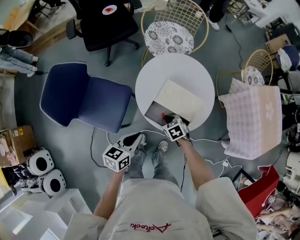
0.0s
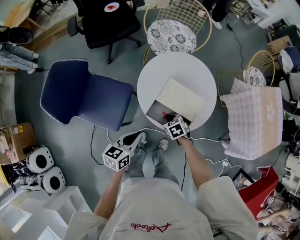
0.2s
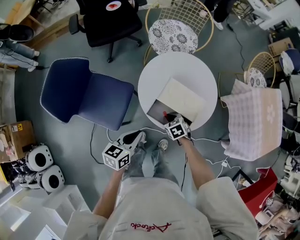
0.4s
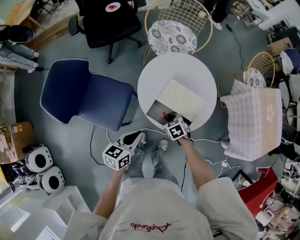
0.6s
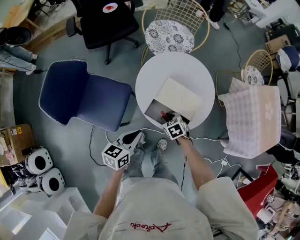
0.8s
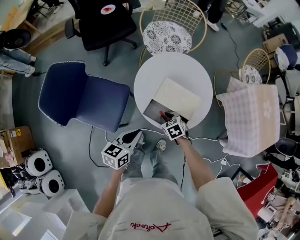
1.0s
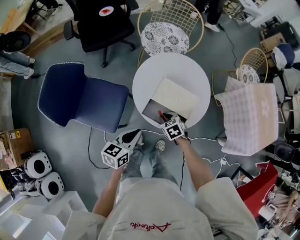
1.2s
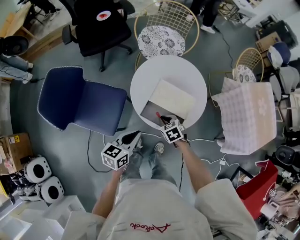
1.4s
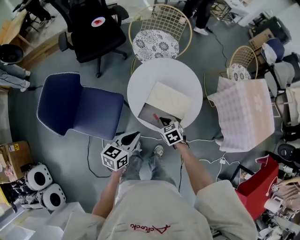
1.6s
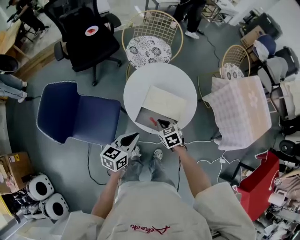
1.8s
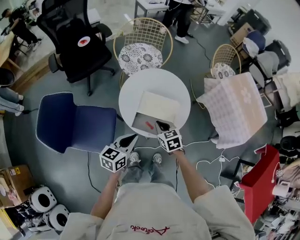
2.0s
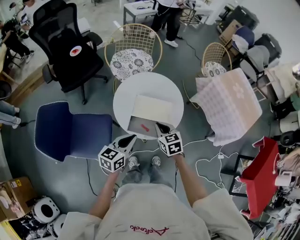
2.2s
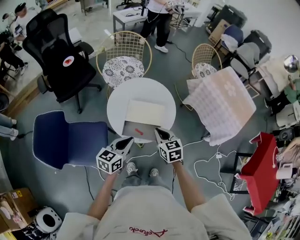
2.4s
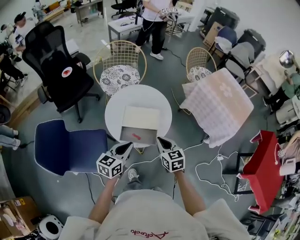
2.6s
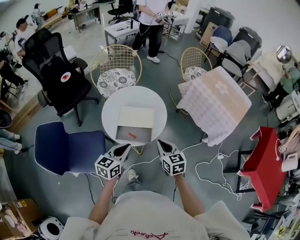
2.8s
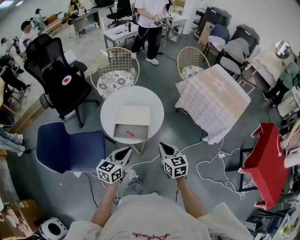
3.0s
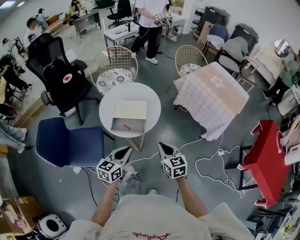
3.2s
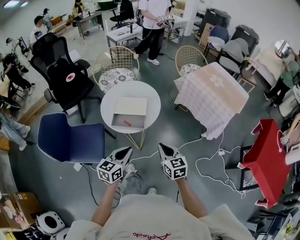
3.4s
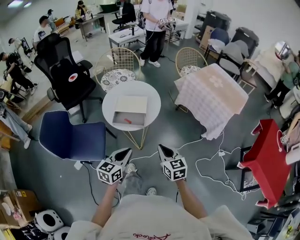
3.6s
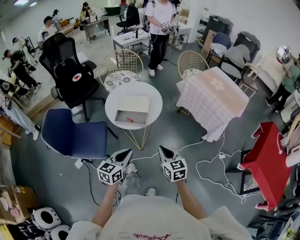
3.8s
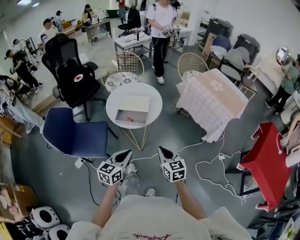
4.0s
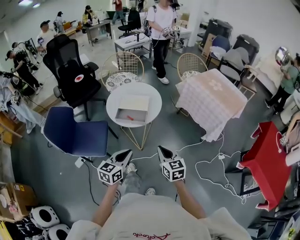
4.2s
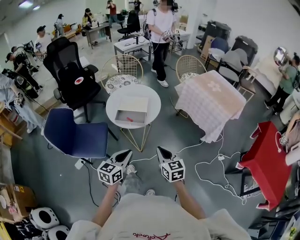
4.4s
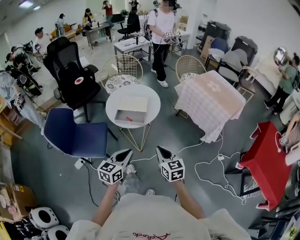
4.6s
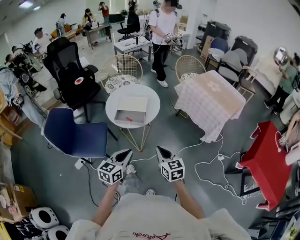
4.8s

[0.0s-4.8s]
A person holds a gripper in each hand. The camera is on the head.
0.0s to 1.6s: The right gripper is displaced upward by roughly 5 cm.
1.6s to 3.2s: The right gripper moves to the right, upward and backward, about 30 cm, and angles its fingers upward, by about 30 degrees, while the left gripper shifts approximately 15 cm to the right, backward and upward, and changes its angle by approximately 20 degrees.
3.2s to 4.8s: Both grippers move backward, approximately 15 cm.

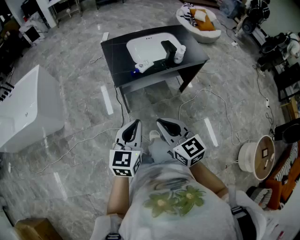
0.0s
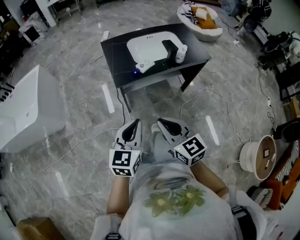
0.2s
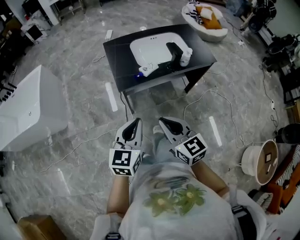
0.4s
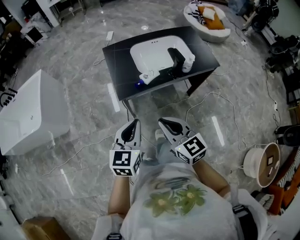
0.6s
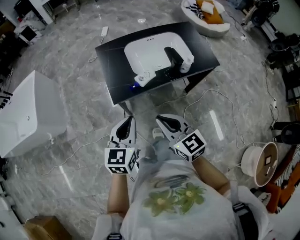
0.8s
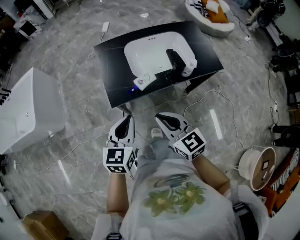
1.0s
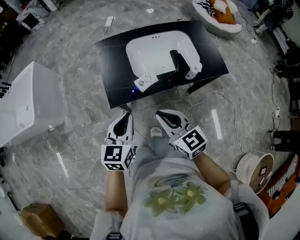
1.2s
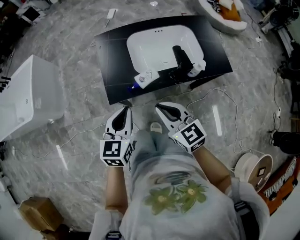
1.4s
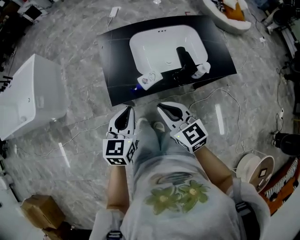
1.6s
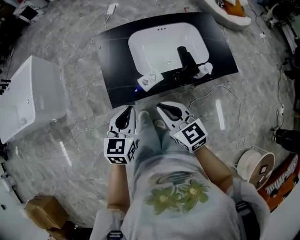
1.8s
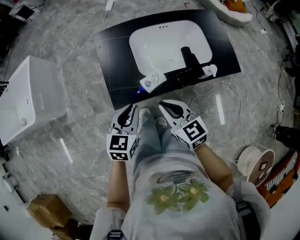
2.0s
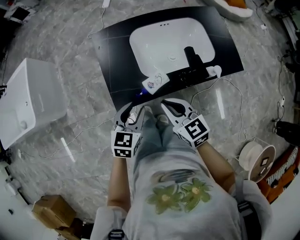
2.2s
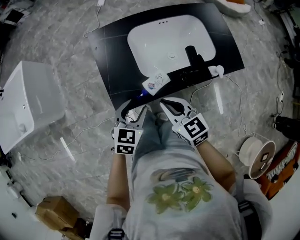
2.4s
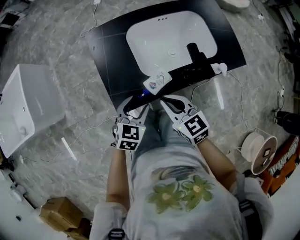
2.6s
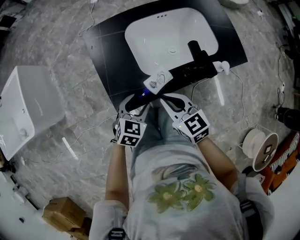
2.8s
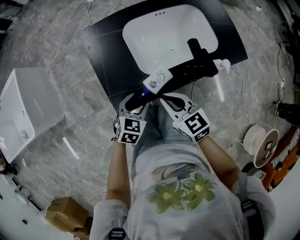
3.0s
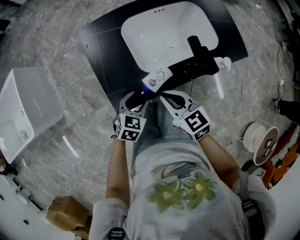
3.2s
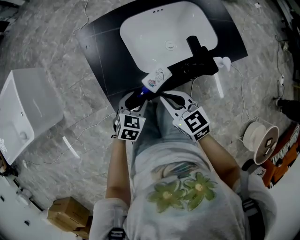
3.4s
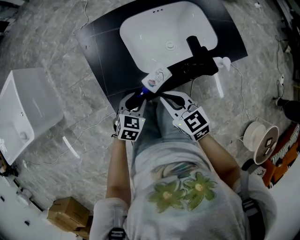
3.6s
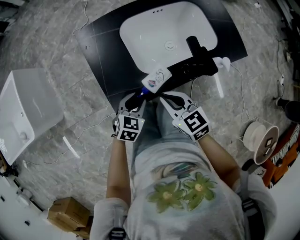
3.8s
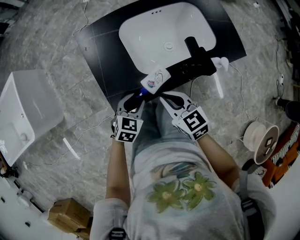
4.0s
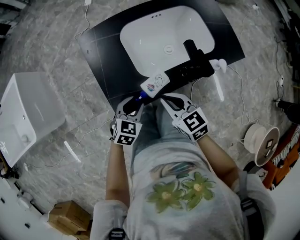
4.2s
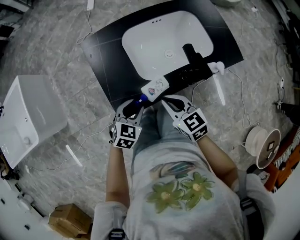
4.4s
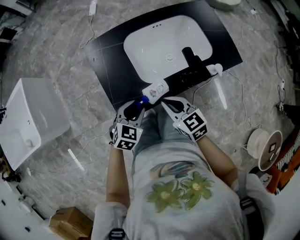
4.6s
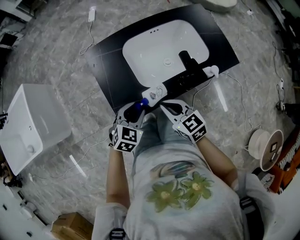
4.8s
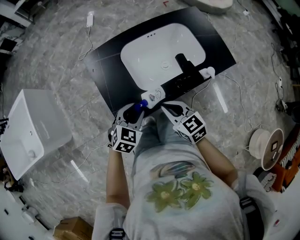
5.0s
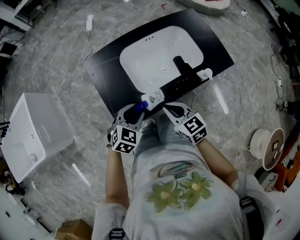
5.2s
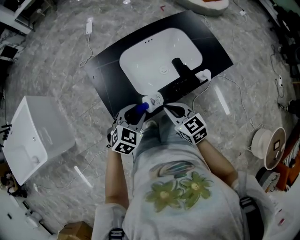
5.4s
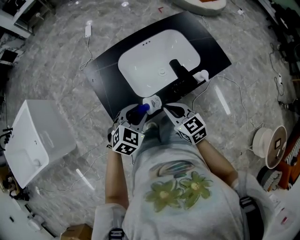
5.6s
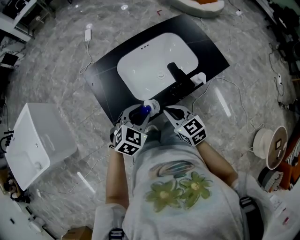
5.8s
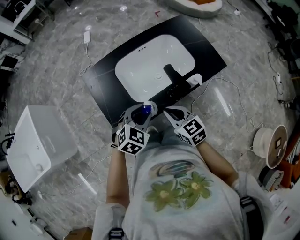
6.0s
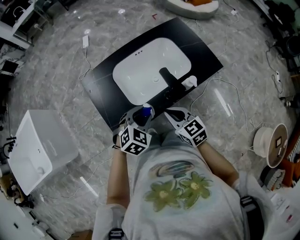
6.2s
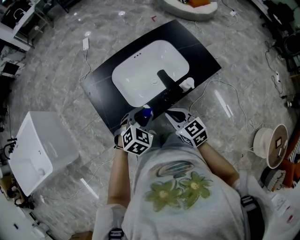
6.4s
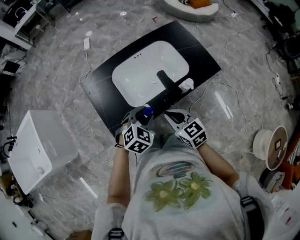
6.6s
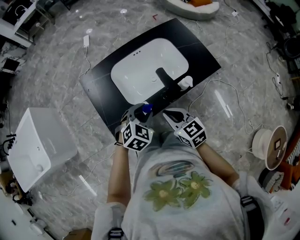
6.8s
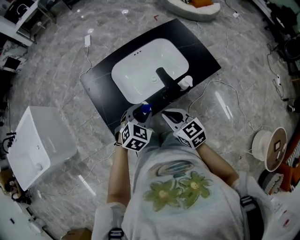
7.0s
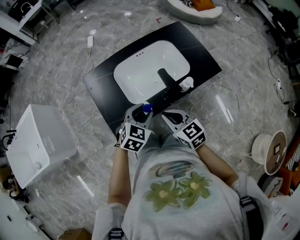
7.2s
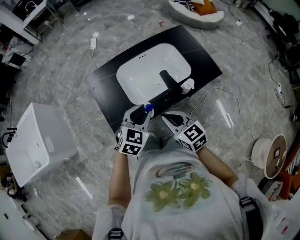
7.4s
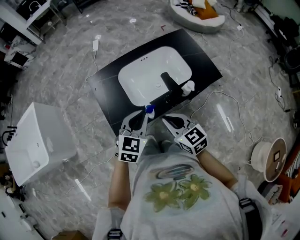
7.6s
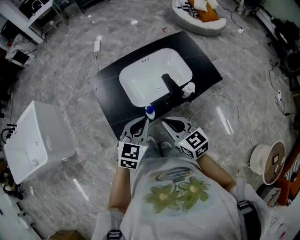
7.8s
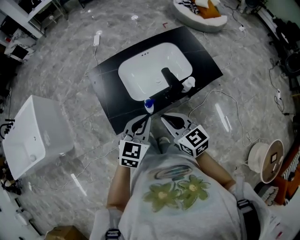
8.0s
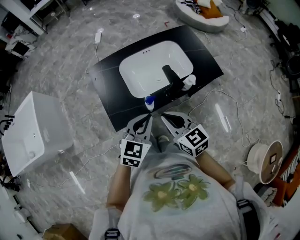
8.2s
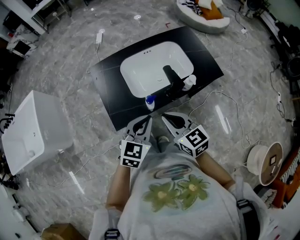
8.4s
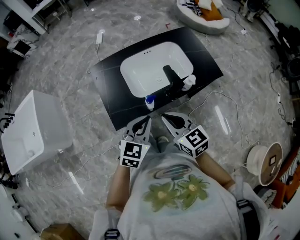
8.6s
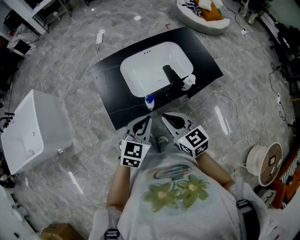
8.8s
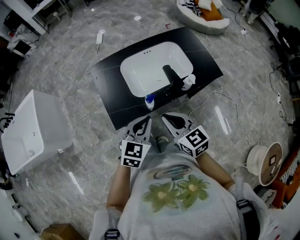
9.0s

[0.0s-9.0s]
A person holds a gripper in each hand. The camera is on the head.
0.0s to 1.6s: The two grippers go about 35 cm forward.
1.6s to 3.0s: The left gripper travels downward and forward by roughly 20 cm, turns by approximately 40 degrees, and opens its fingers. Meanwhile the right gripper travels forward and downward by some 15 cm.
3.0s to 4.4s: There are only small adjustments of the grippers.
4.4s to 6.0s: The left gripper moves upward and to the right, about 15 cm. The right gripper moves to the right, some 5 cm.
6.0s to 7.6s: Both grippers move upward, some 10 cm. The left gripper turns by some 20 degrees, and closes its fingers.
7.6s to 9.0s: The left gripper is displaced backward by roughly 5 cm. The right gripper moves some 5 cm.

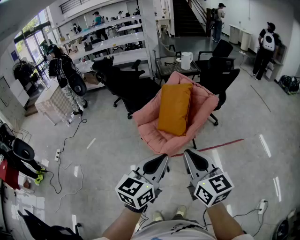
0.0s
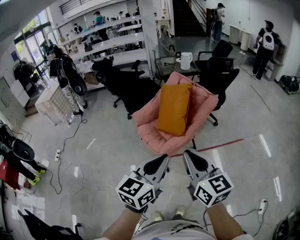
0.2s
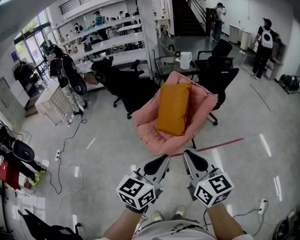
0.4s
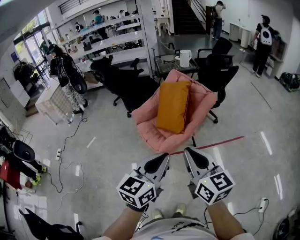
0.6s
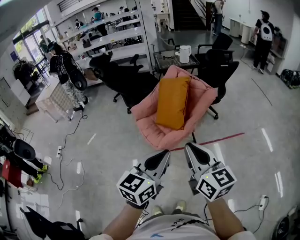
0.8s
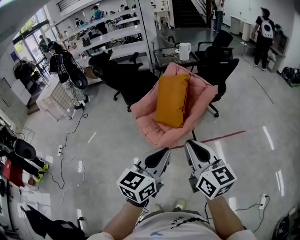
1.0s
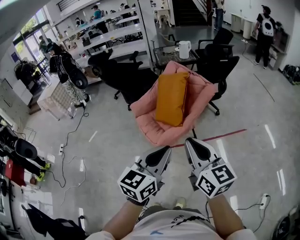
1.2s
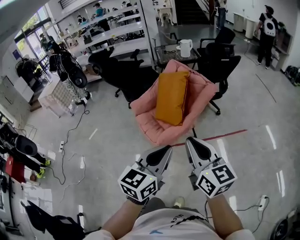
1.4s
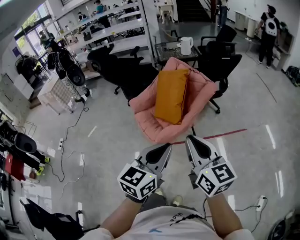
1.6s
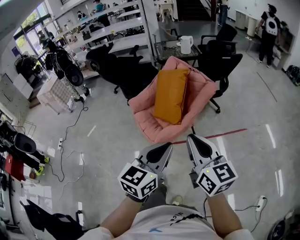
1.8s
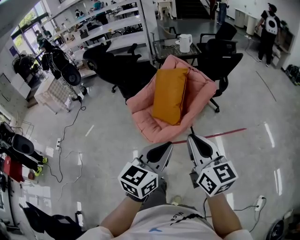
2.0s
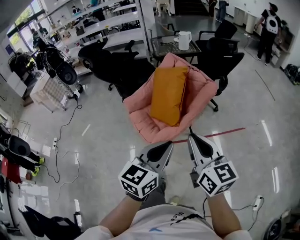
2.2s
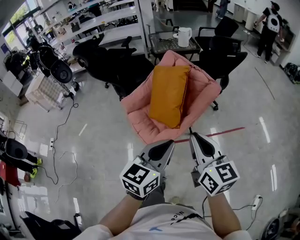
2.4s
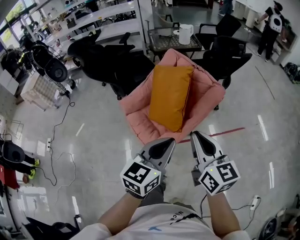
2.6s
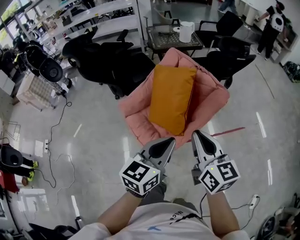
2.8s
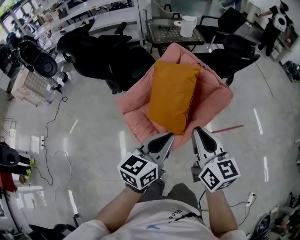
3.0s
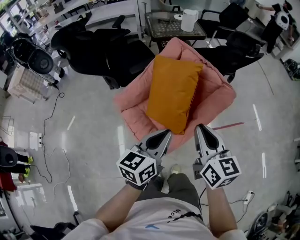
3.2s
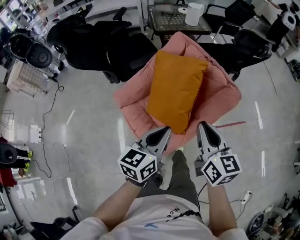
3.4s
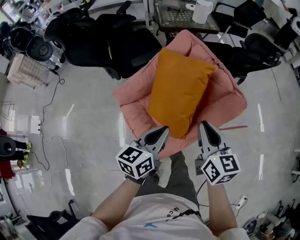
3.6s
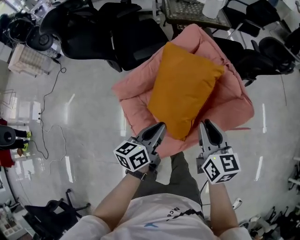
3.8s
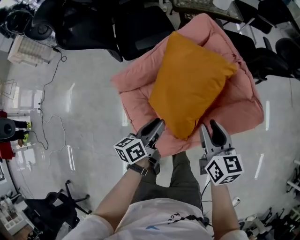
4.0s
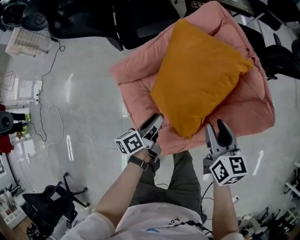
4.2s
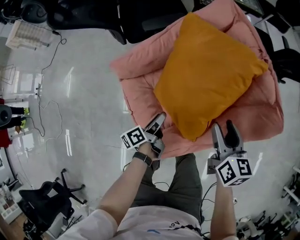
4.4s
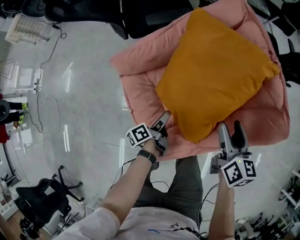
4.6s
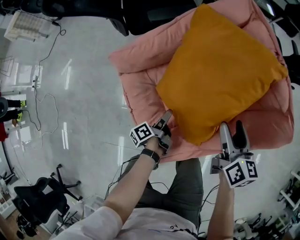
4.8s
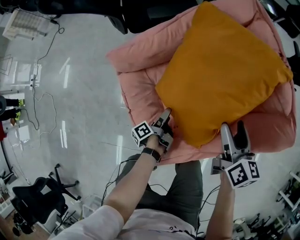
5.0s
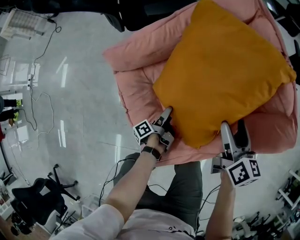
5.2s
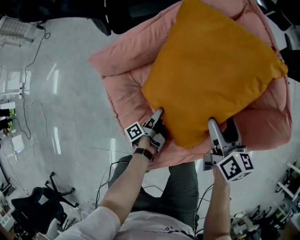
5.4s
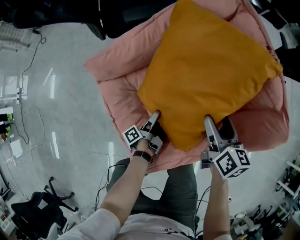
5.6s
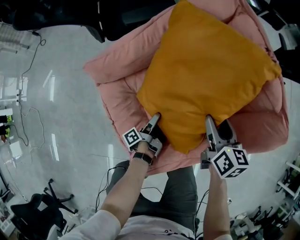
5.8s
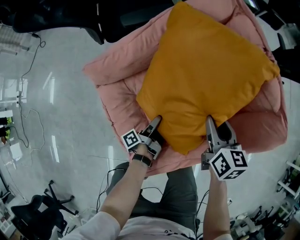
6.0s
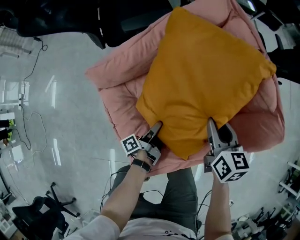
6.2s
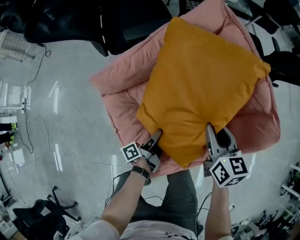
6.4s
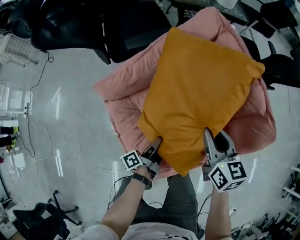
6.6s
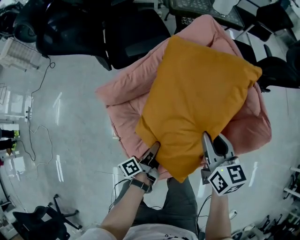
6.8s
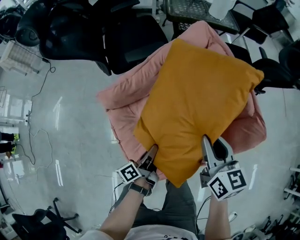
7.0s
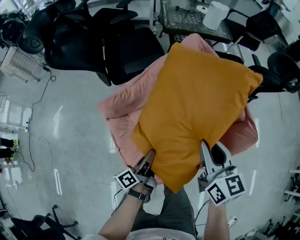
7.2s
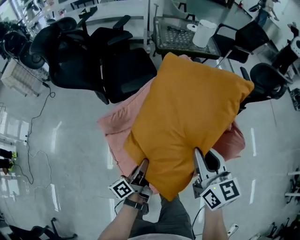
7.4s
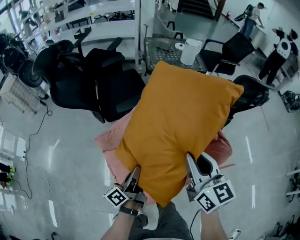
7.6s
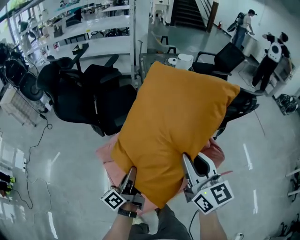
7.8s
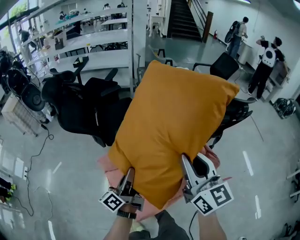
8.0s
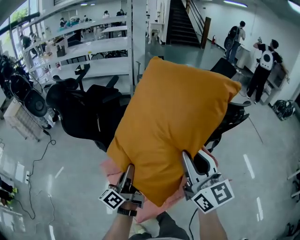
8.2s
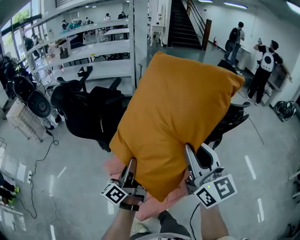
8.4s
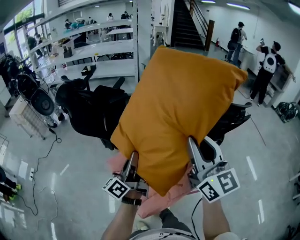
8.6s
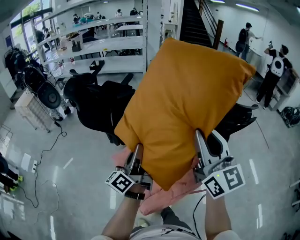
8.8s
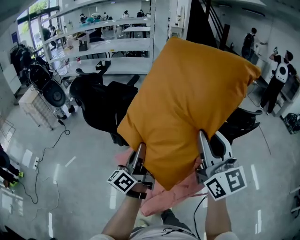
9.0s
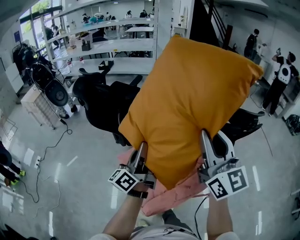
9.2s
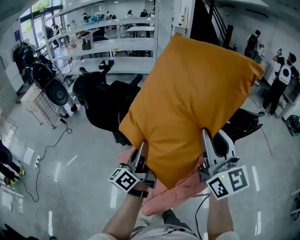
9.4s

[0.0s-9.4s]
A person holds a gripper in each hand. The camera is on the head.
0.0s to 1.6s: Both grippers travel together to the right, roughly 10 cm.
1.6s to 3.2s: The two grippers go some 35 cm forward.
3.2s to 4.8s: The left gripper shifts approximately 50 cm downward, rotates around the line of its fingers by about 80 degrees, counterclockwise from behind, and opens; the right gripper goes roughly 40 cm downward and forward, and opens up.
4.8s to 6.2s: The left gripper moves about 5 cm, and closes. The right gripper closes up.
6.2s to 7.8s: Both grippers move upward, some 40 cm. The left gripper rolls clockwise, seen from behind, by approximately 40 degrees. The right gripper tilts its fingers about 30 degrees upward.
7.8s to 9.4s: Both grippers travel together upward, approximately 25 cm. The right gripper turns by roughly 20 degrees; the left gripper rotates some 20 degrees.
